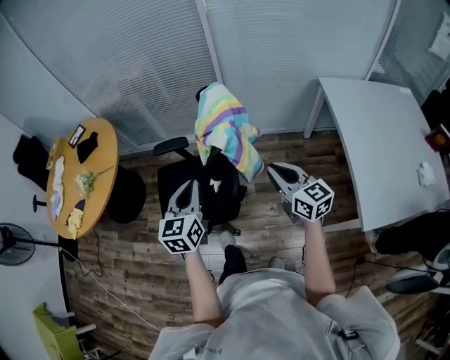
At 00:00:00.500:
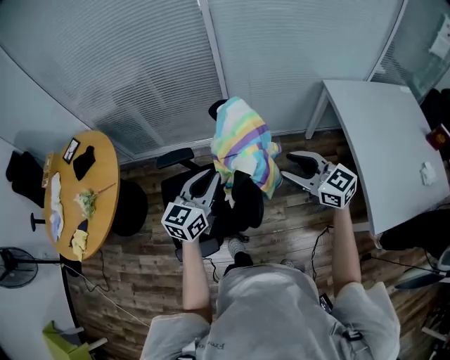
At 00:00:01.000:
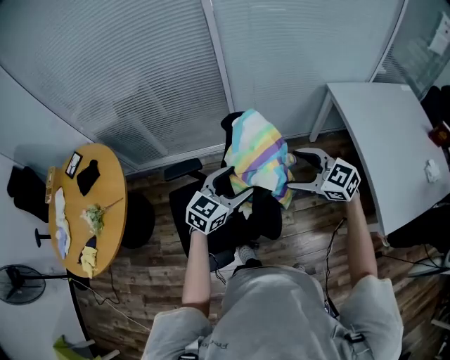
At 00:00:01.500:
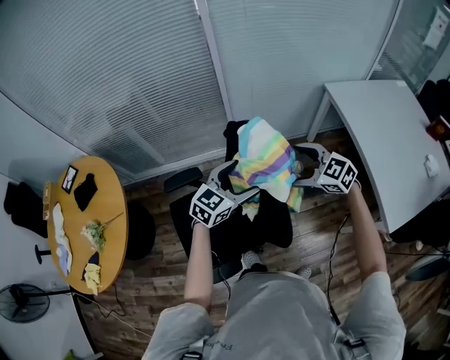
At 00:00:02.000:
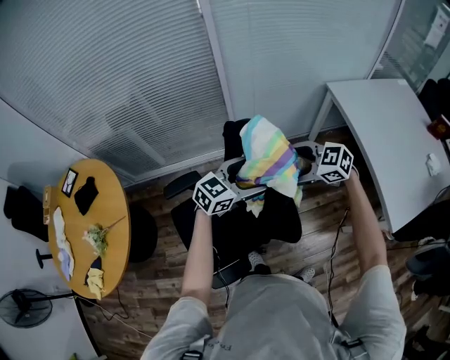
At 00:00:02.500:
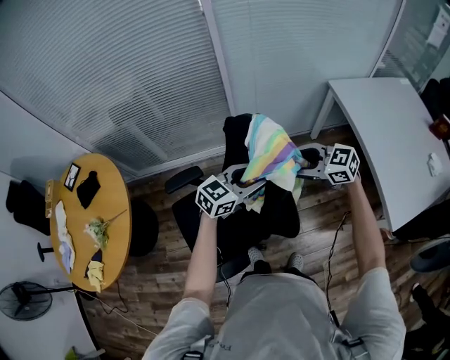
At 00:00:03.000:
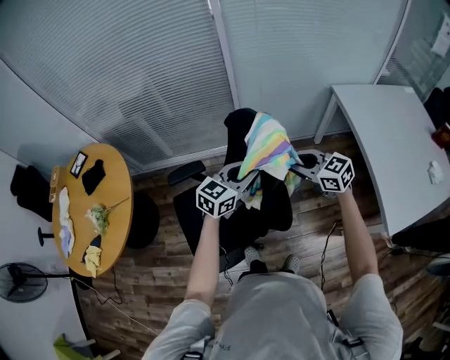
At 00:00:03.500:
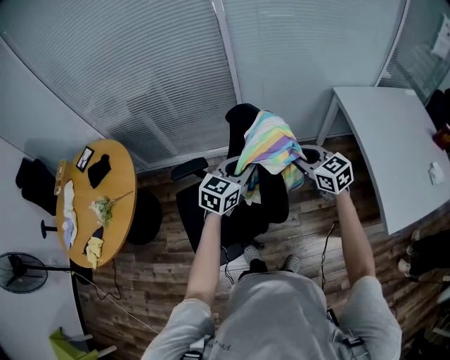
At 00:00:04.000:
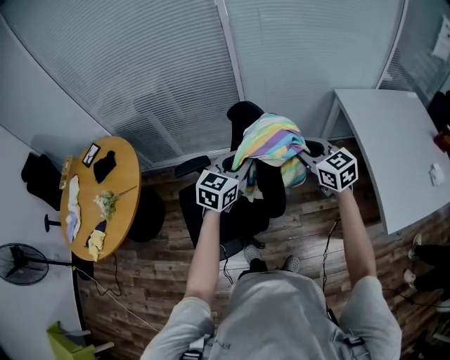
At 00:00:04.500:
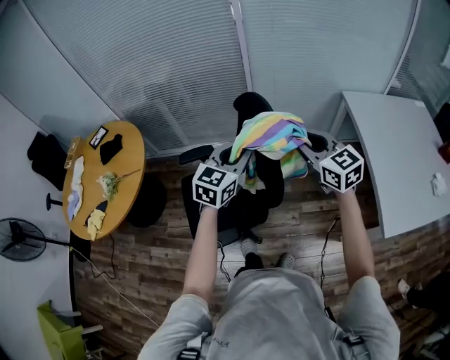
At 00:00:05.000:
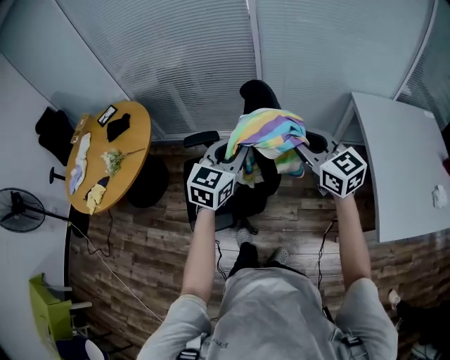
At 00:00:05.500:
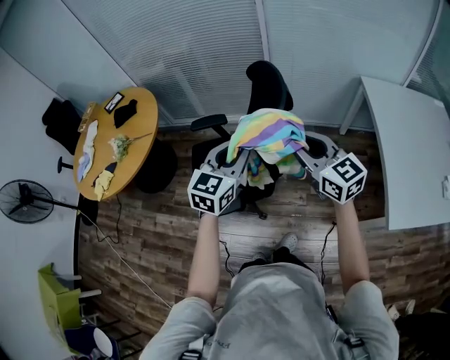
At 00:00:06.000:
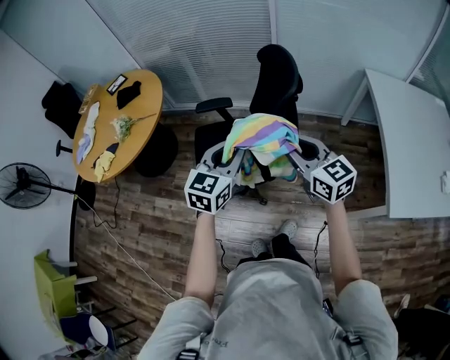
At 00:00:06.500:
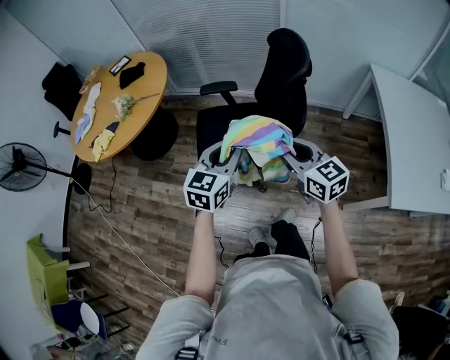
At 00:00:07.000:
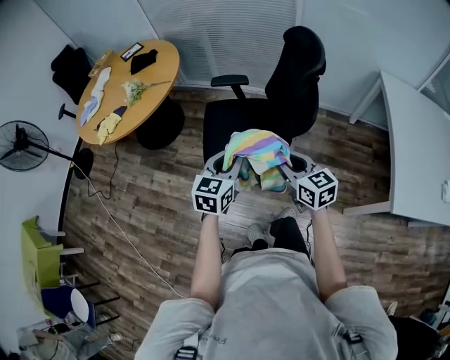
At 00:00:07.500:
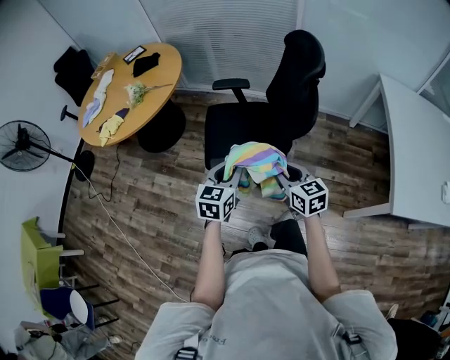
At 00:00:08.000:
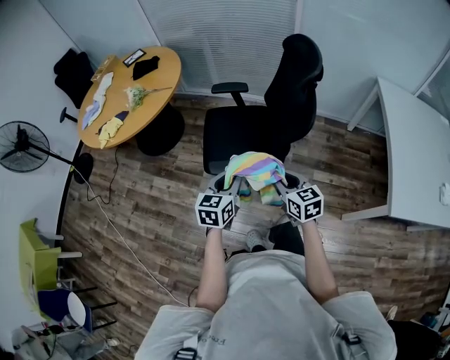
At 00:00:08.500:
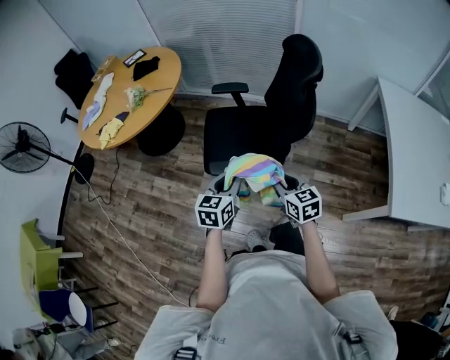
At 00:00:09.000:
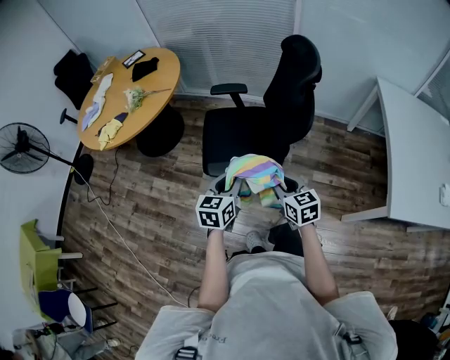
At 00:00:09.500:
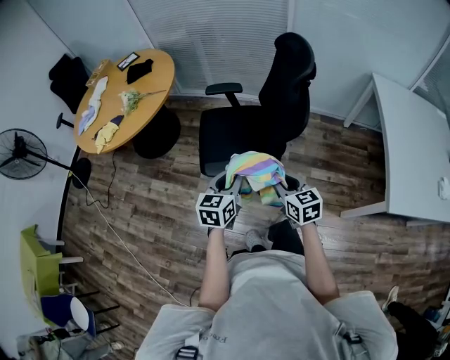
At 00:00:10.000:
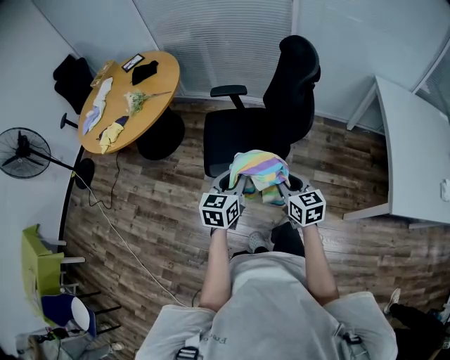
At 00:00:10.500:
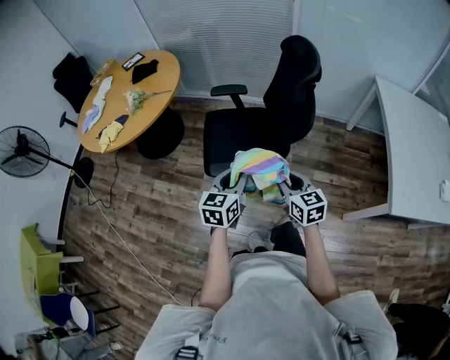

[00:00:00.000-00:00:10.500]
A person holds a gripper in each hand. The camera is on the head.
00:00:00.000 to 00:00:02.000: The left gripper changes place by approximately 20 cm, rotates some 70 degrees, and opens up; the right gripper shifts by about 20 cm, changes its angle by about 40 degrees, and opens its fingers.
00:00:02.000 to 00:00:04.000: Both grippers move upward, about 10 cm. The left gripper turns by approximately 30 degrees, and closes up, while the right gripper turns by about 30 degrees, and closes.
00:00:04.000 to 00:00:06.500: The two grippers go some 30 cm backward and to the left. The left gripper turns by about 20 degrees.
00:00:06.500 to 00:00:08.500: The left gripper moves downward, backward and to the left, roughly 15 cm; the right gripper moves downward and backward, approximately 15 cm.
00:00:08.500 to 00:00:10.500: There are only small adjustments of the grippers.

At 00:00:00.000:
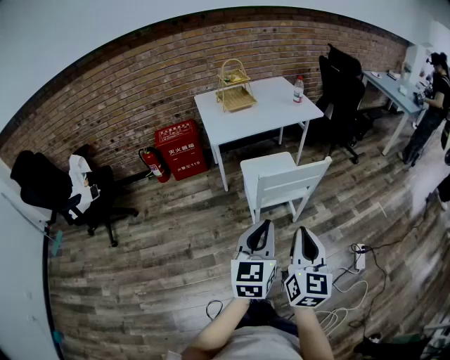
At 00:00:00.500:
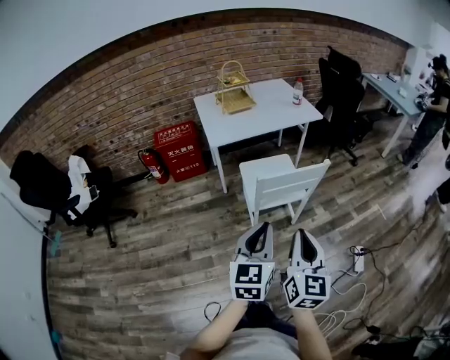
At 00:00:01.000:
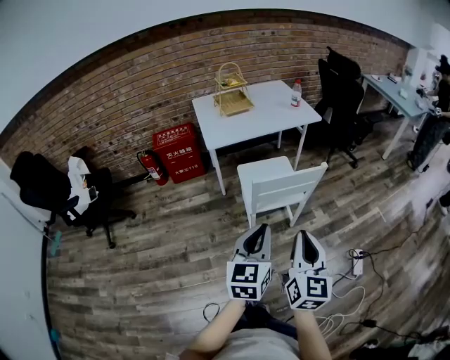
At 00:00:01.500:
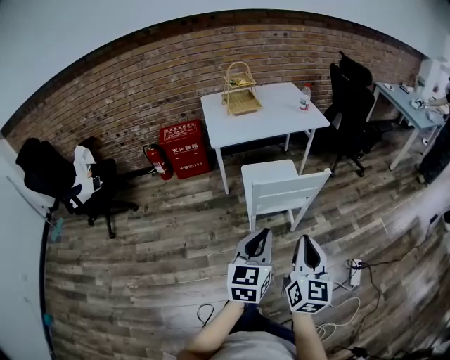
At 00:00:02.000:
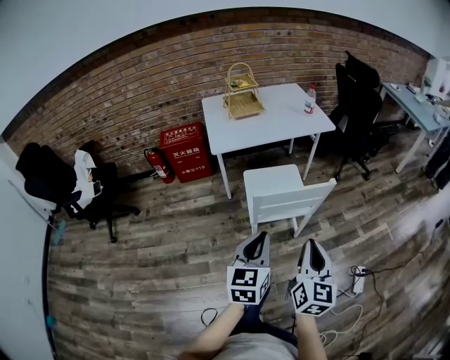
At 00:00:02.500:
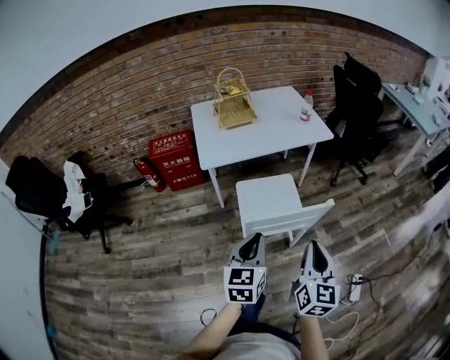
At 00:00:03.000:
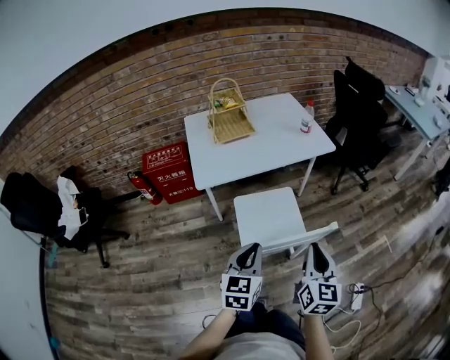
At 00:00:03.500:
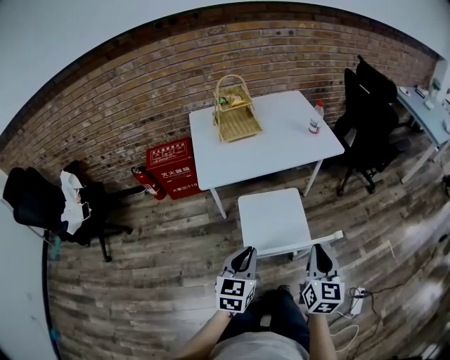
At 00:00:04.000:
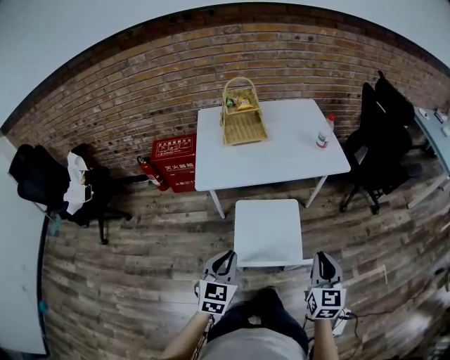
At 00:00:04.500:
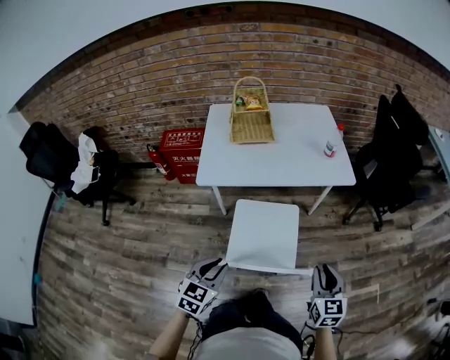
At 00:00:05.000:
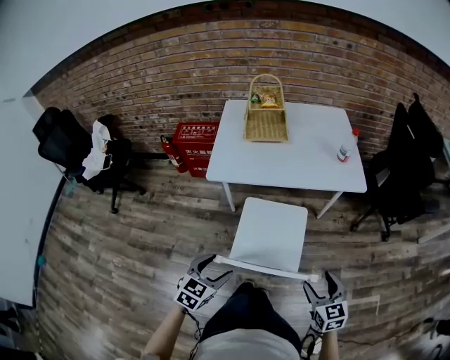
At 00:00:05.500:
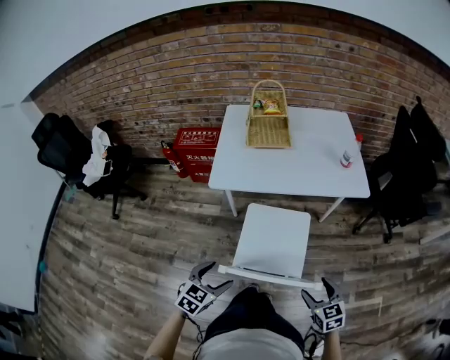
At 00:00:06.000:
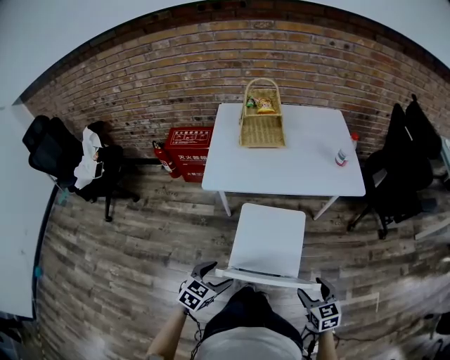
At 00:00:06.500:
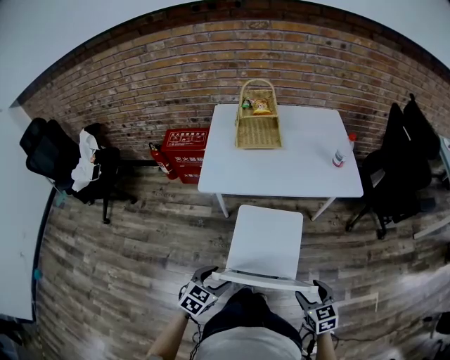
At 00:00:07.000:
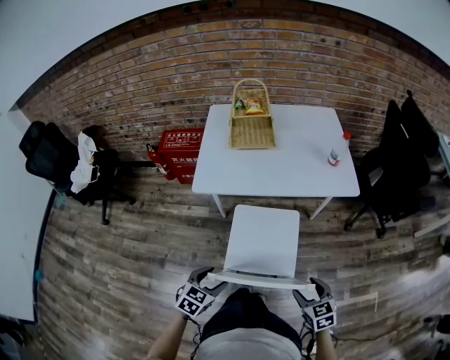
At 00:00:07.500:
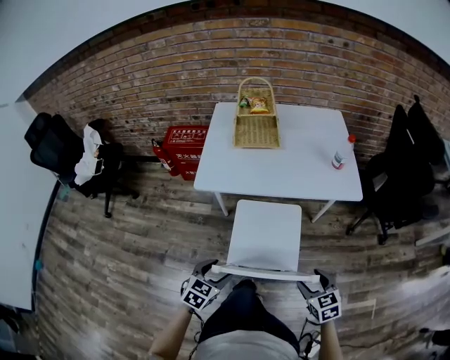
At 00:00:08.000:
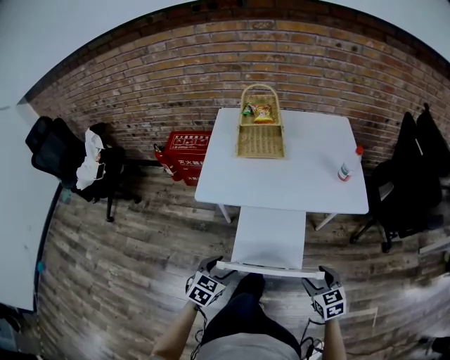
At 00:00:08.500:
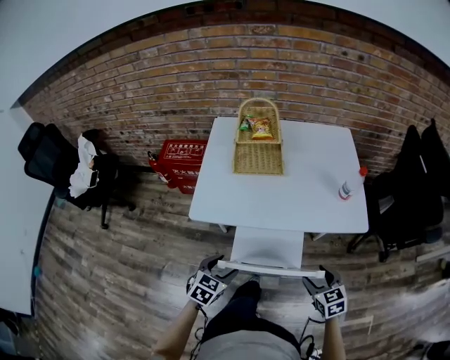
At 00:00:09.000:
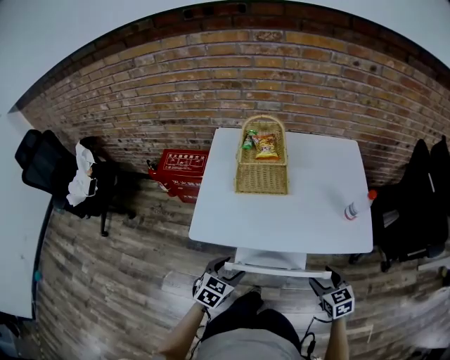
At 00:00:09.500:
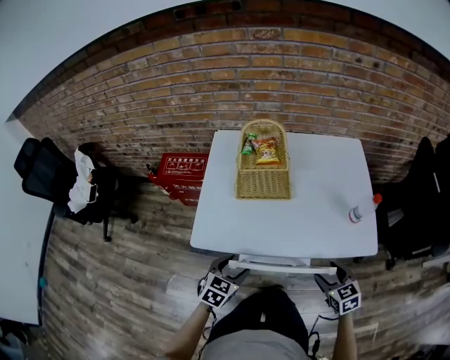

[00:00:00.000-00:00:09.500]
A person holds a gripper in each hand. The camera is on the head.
00:00:00.000 to 00:00:02.000: The left gripper goes approximately 10 cm forward and downward. Meanwhile the right gripper shifts approximately 10 cm forward and to the right.
00:00:02.000 to 00:00:04.000: Both grippers move forward, approximately 25 cm. The right gripper turns by about 20 degrees.
00:00:04.000 to 00:00:05.500: Both grippers travel together downward, about 10 cm. The right gripper turns by roughly 40 degrees, and opens its fingers. The left gripper opens its fingers.
00:00:05.500 to 00:00:07.500: The two grippers go some 5 cm forward.
00:00:07.500 to 00:00:09.500: The grippers both shift forward by approximately 30 cm.

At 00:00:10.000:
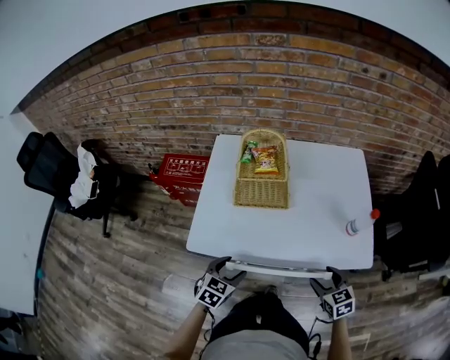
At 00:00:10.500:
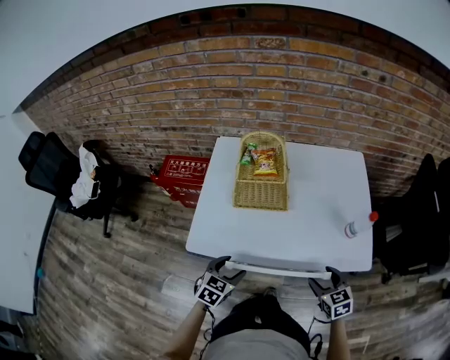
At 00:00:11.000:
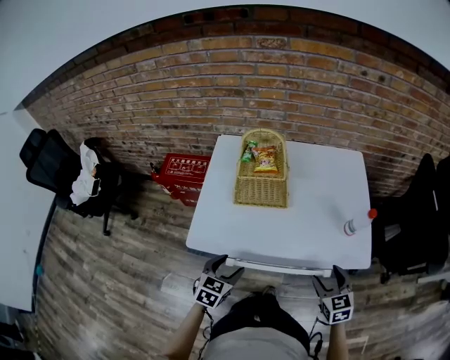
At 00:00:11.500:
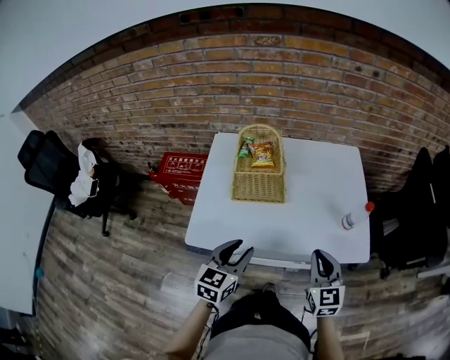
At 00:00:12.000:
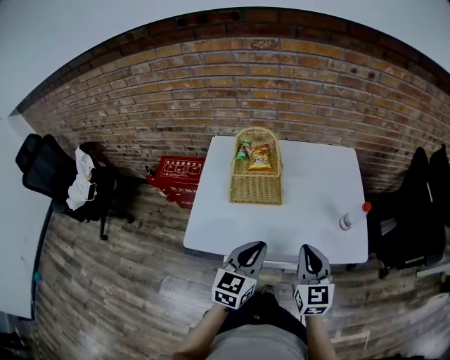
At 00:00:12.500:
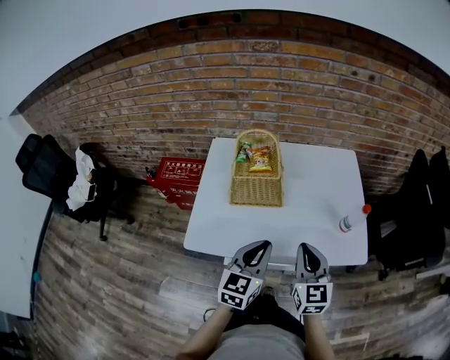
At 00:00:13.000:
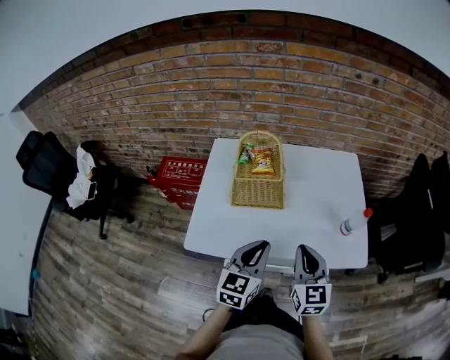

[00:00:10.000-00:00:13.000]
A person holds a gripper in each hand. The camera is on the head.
00:00:10.000 to 00:00:11.500: Both grippers travel together upward, roughly 10 cm. The left gripper swivels some 20 degrees; the right gripper swivels roughly 30 degrees, and closes up.
00:00:11.500 to 00:00:13.000: The left gripper ends up some 5 cm from where it was, and closes. The right gripper is displaced to the left by roughly 5 cm.

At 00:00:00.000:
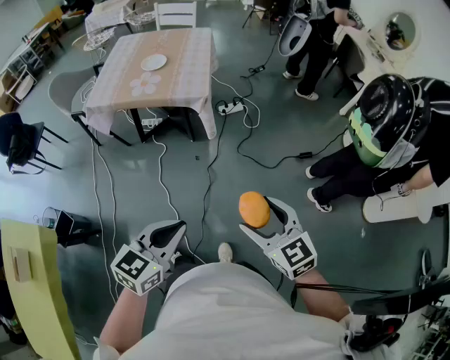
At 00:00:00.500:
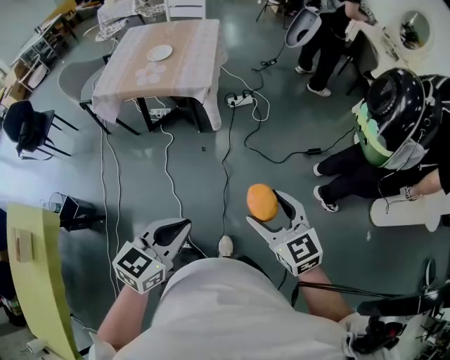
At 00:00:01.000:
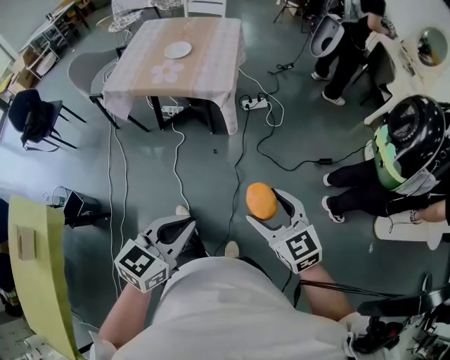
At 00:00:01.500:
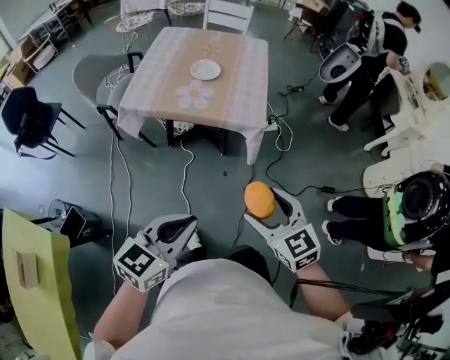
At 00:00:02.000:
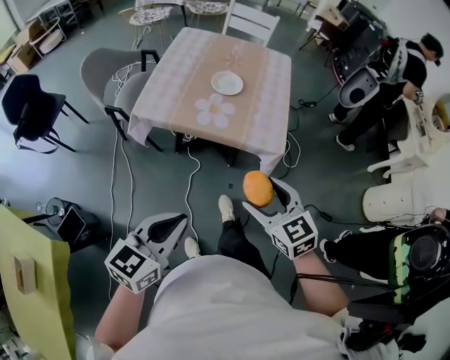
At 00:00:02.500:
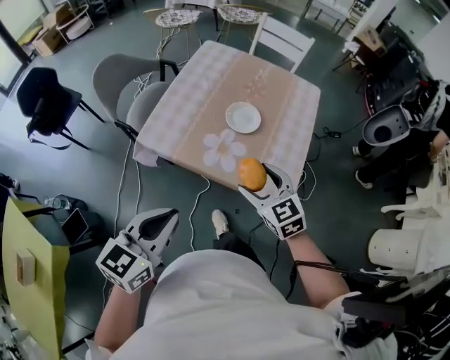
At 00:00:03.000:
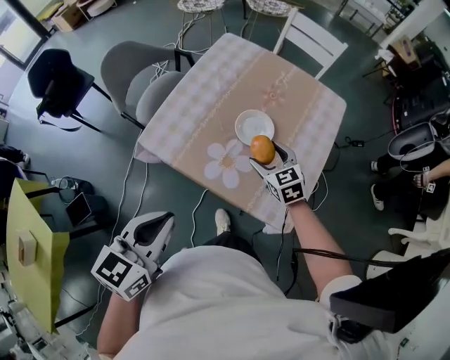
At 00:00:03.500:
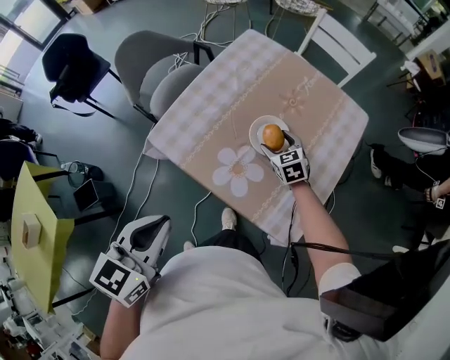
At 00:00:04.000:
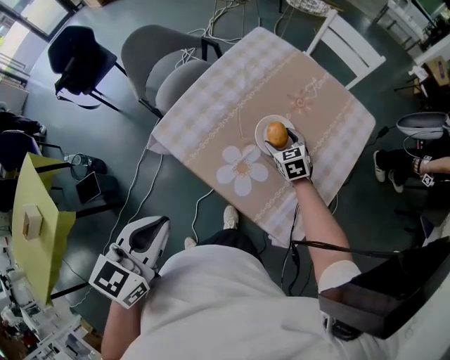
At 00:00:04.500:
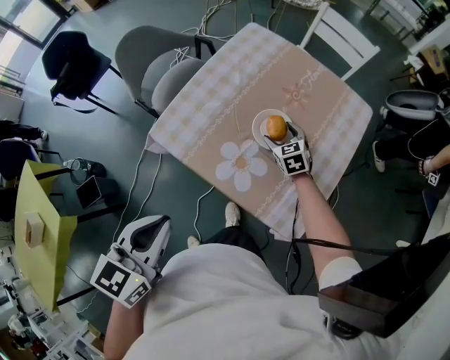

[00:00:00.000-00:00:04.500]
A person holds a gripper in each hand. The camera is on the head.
00:00:00.000 to 00:00:02.000: The right gripper travels forward and to the left by some 40 cm. Meanwhile the left gripper travels to the left and forward by about 35 cm.
00:00:02.000 to 00:00:04.500: The left gripper shifts approximately 25 cm forward, and swivels approximately 30 degrees. Meanwhile the right gripper travels forward and downward by some 60 cm.
